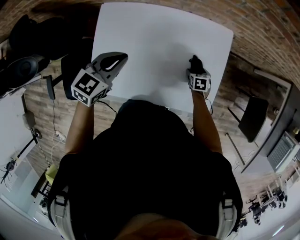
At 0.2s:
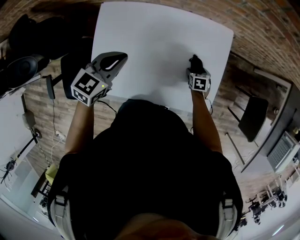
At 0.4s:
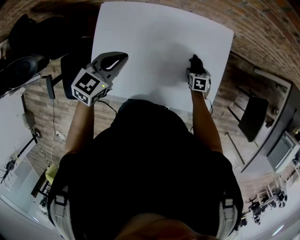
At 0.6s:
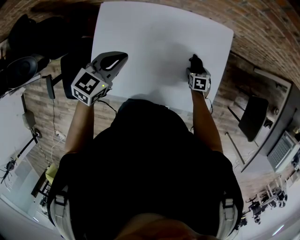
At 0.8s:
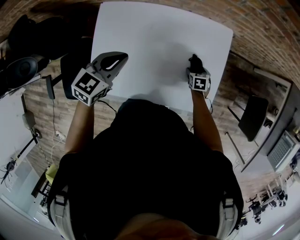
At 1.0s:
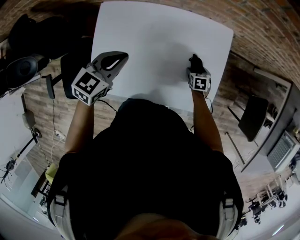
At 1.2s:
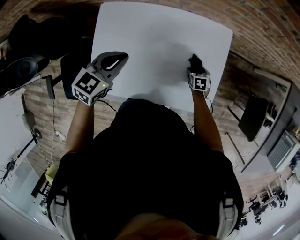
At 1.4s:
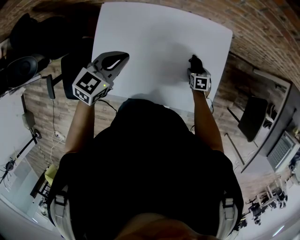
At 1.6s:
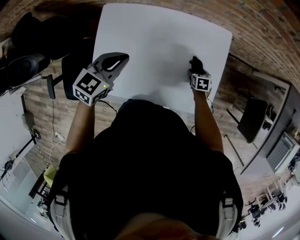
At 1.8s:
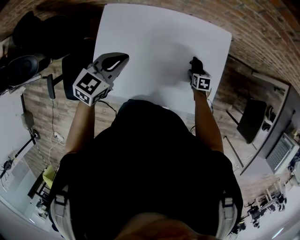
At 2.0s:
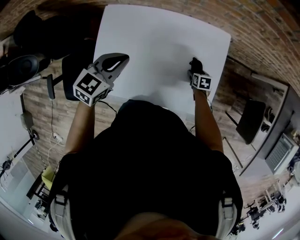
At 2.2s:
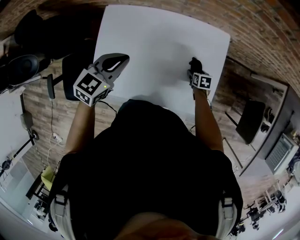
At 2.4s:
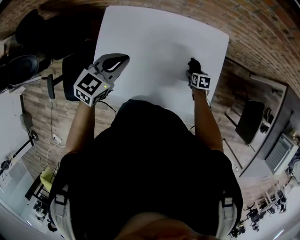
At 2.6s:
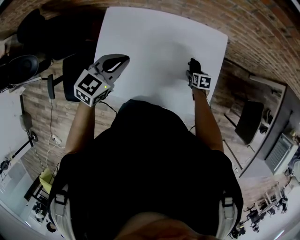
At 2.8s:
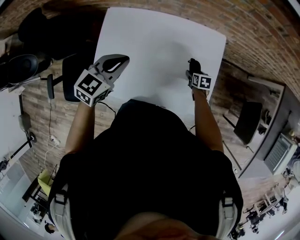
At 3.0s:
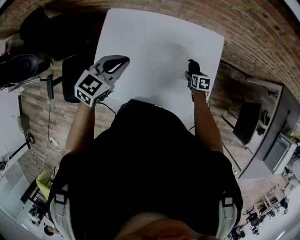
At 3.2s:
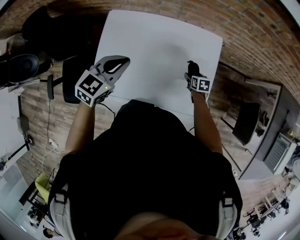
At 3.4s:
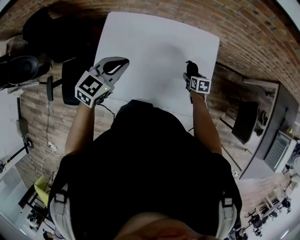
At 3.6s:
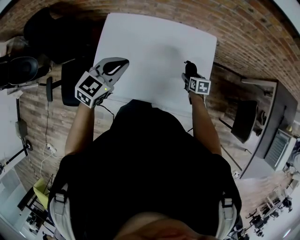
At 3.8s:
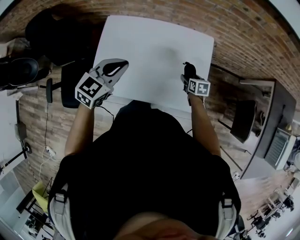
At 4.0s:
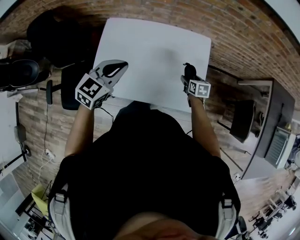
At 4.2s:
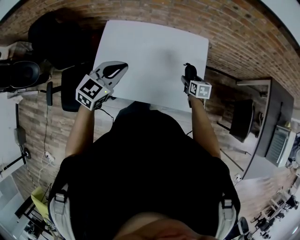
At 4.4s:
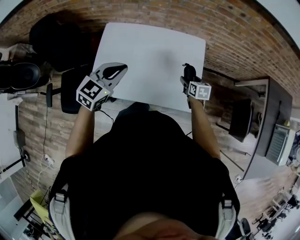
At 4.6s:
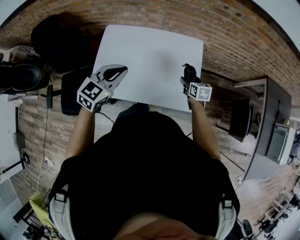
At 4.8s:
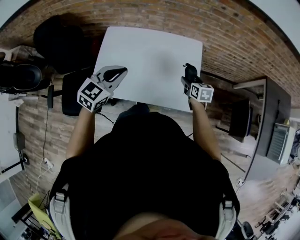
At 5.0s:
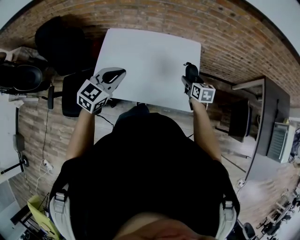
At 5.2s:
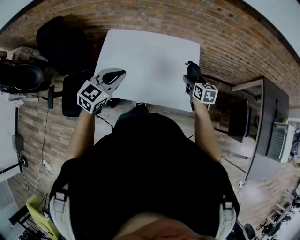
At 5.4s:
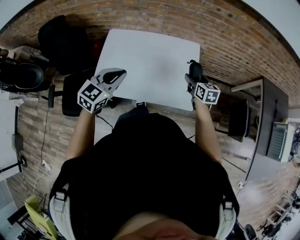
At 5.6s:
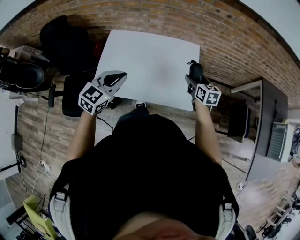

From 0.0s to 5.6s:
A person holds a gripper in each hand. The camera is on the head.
From 0.0s to 1.4s: The two grippers keep their place.
From 1.4s to 2.8s: The left gripper moves roughly 5 cm.
From 2.8s to 4.2s: The right gripper shifts about 15 cm upward and backward. The left gripper goes approximately 10 cm backward and upward.
From 4.2s to 5.6s: The right gripper shifts approximately 15 cm upward and backward; the left gripper is displaced backward by roughly 10 cm.

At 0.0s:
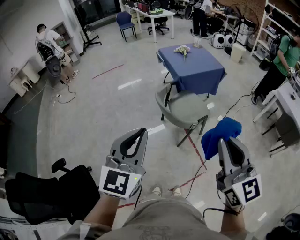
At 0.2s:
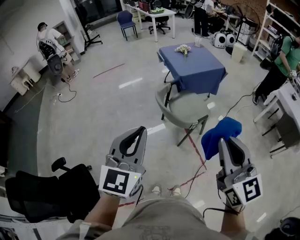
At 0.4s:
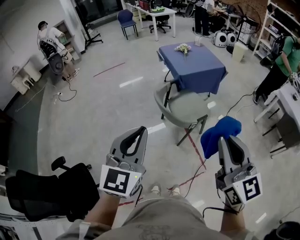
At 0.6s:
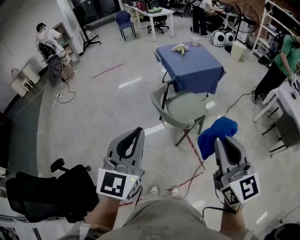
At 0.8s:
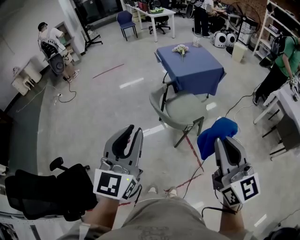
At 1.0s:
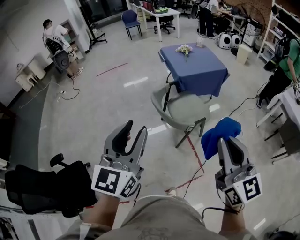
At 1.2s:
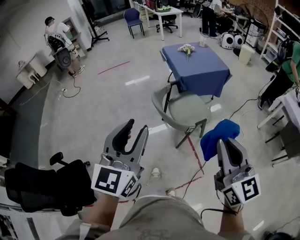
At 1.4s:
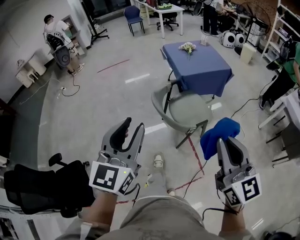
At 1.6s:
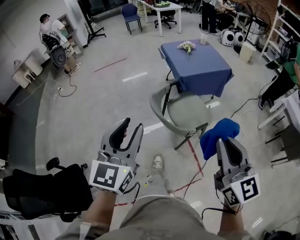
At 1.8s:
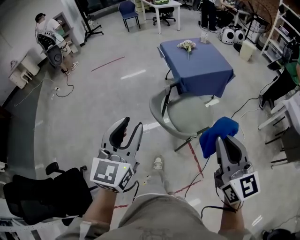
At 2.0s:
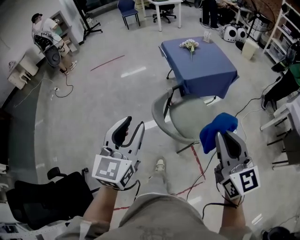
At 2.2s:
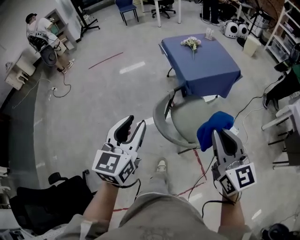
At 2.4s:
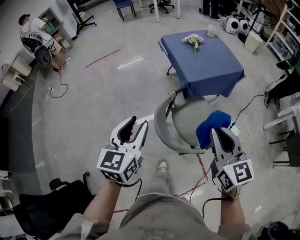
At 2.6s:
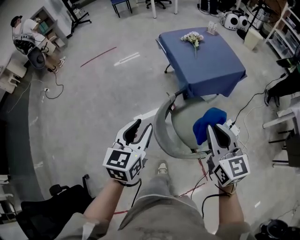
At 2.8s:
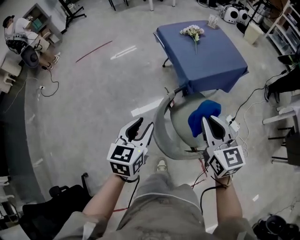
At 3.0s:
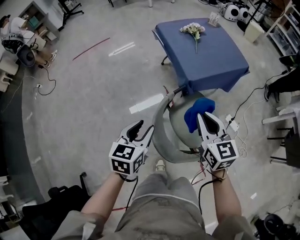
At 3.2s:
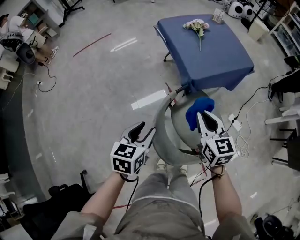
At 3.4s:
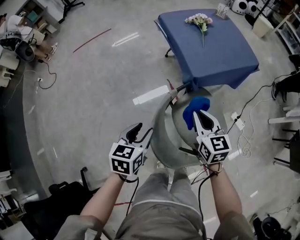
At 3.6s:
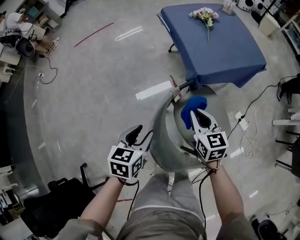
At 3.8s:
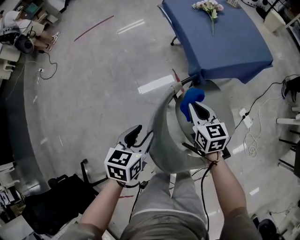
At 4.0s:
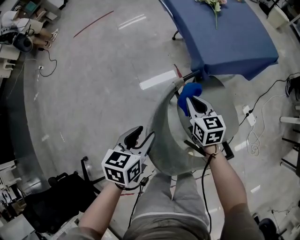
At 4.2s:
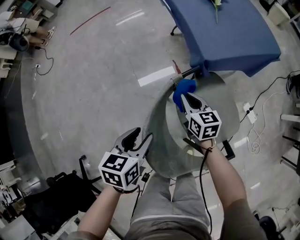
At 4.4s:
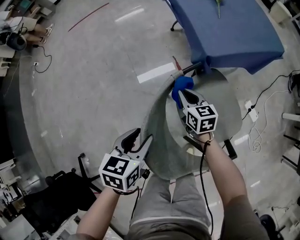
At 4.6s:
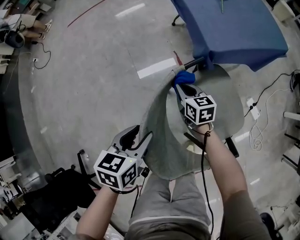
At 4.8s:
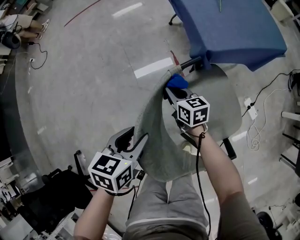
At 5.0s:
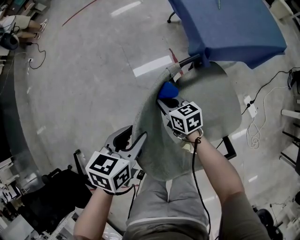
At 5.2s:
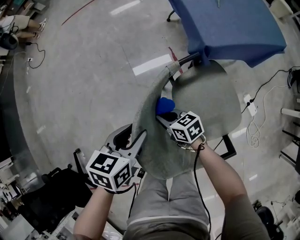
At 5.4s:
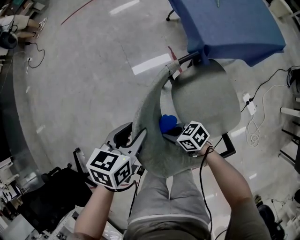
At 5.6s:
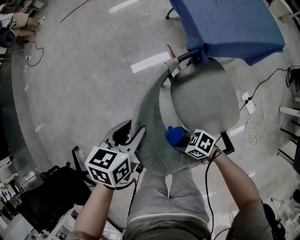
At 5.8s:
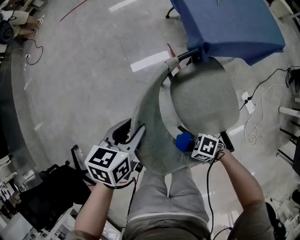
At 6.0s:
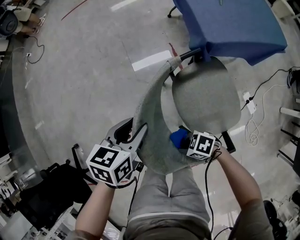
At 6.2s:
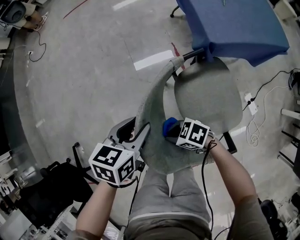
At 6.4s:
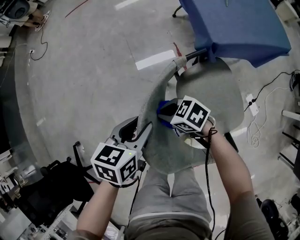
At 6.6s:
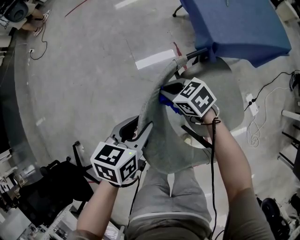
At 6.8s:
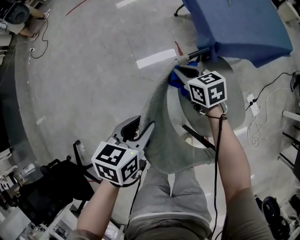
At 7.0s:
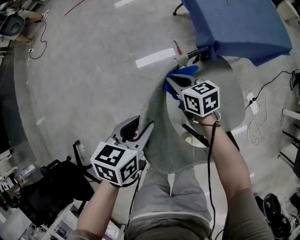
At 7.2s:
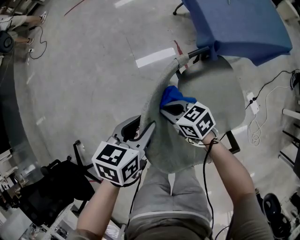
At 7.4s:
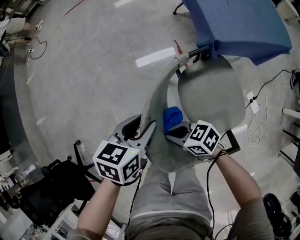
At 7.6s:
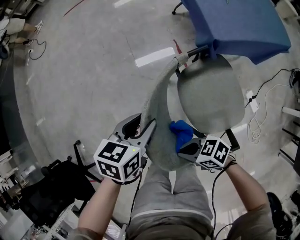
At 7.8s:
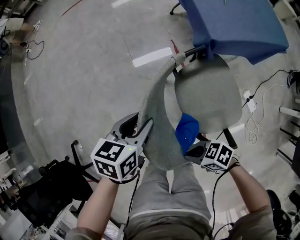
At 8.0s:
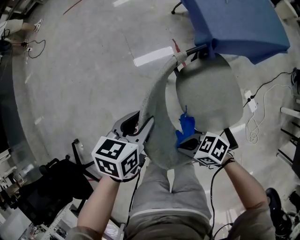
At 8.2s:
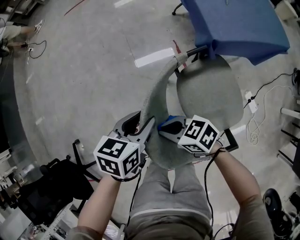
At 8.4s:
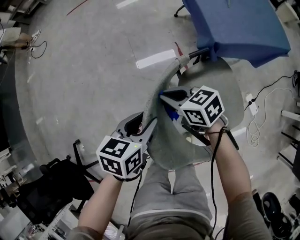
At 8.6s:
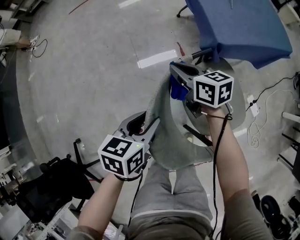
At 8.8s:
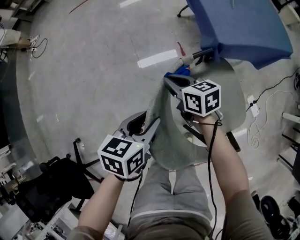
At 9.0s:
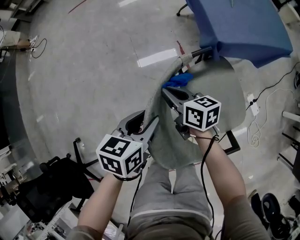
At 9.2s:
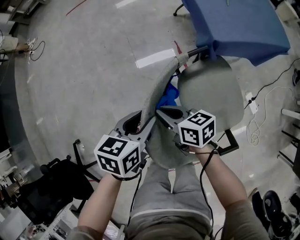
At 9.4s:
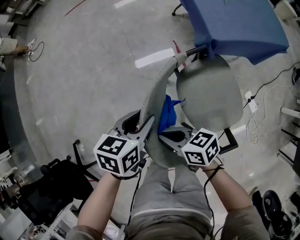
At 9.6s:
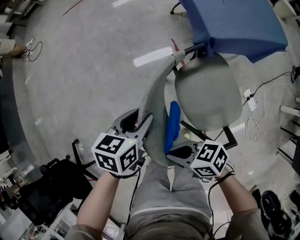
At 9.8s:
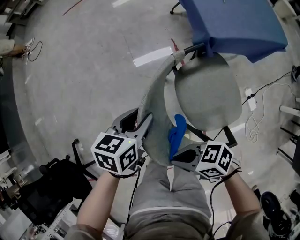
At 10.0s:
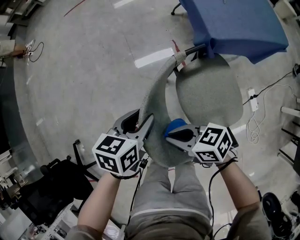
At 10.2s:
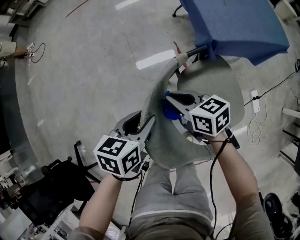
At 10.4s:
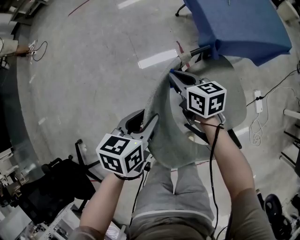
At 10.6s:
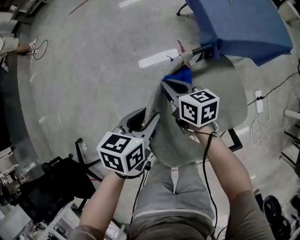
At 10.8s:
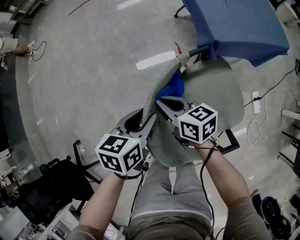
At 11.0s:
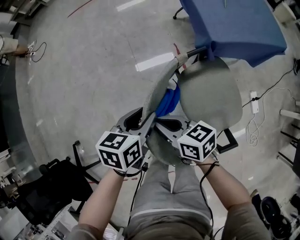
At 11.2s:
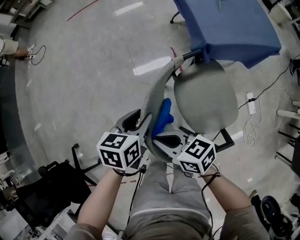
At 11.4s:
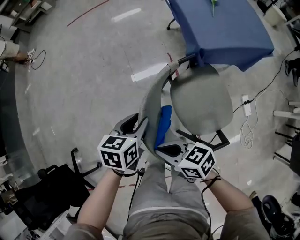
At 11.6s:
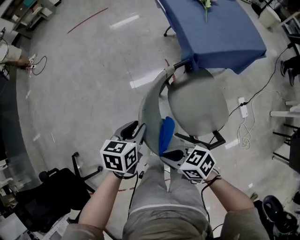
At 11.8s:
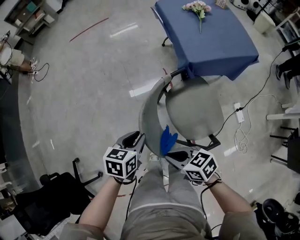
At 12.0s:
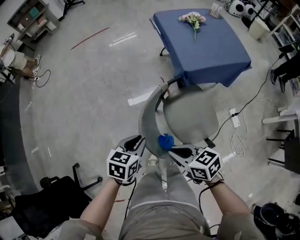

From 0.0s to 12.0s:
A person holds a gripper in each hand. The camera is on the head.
From 0.0s to 1.6s: The left gripper goes approximately 10 cm forward, and opens up, while the right gripper goes approximately 15 cm forward, to the right and downward.
From 1.6s to 3.0s: Both grippers travel together forward and downward, about 50 cm. The left gripper points its fingers roughly 30 degrees further downward. Meanwhile the right gripper changes its angle by about 20 degrees.
From 3.0s to 4.4s: The left gripper travels downward by some 15 cm. Meanwhile the right gripper heads downward, covering some 35 cm, and swivels roughly 20 degrees.
From 4.4s to 6.0s: The right gripper moves about 30 cm, and turns by approximately 80 degrees.
From 6.0s to 7.6s: The right gripper is displaced upward by roughly 10 cm.
From 7.6s to 9.0s: The right gripper changes place by roughly 25 cm, and rotates some 50 degrees.
From 10.4s to 12.0s: The right gripper shifts about 30 cm backward and upward. The left gripper travels upward and backward by some 10 cm.

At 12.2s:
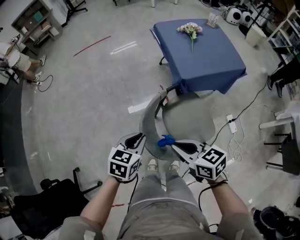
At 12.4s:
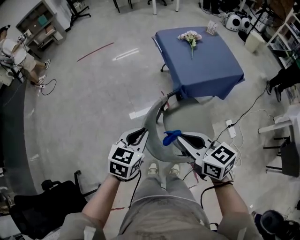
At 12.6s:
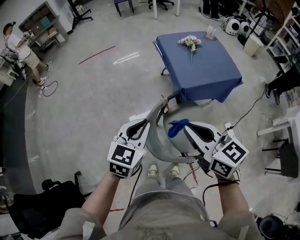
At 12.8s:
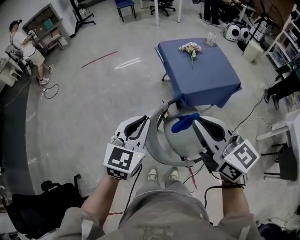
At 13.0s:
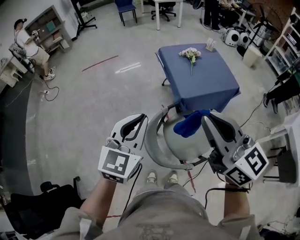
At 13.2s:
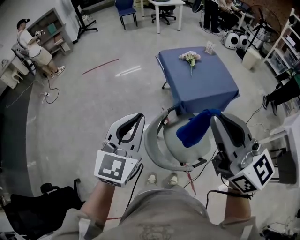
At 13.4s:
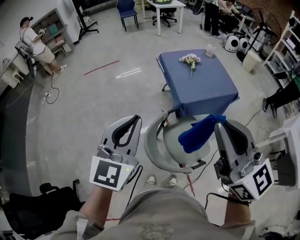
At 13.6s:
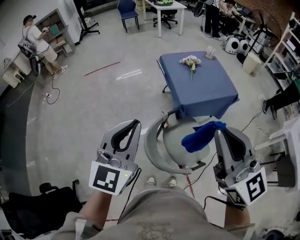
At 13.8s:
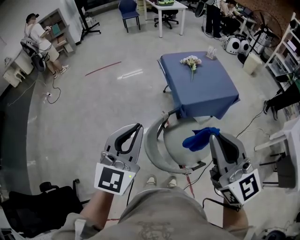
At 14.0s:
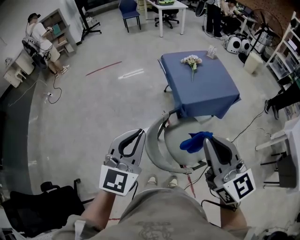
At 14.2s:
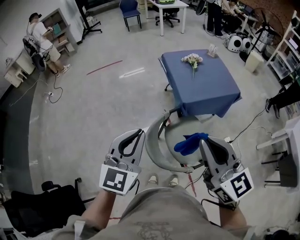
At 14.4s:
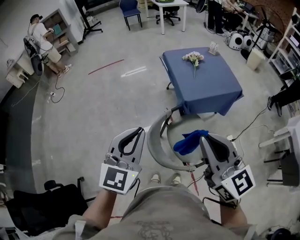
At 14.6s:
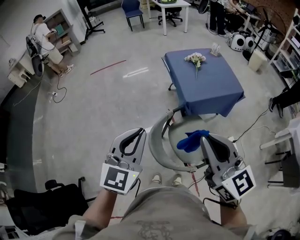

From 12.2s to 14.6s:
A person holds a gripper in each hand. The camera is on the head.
From 12.2s to 13.4s: The grippers both shift upward by roughly 35 cm. The left gripper tilts its fingers about 40 degrees upward. Meanwhile the right gripper points its fingers approximately 30 degrees further upward.
From 13.4s to 14.6s: The right gripper goes about 10 cm downward. The left gripper changes place by some 5 cm.

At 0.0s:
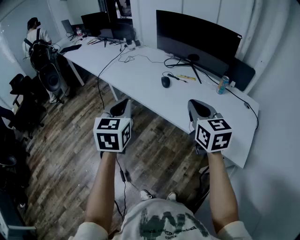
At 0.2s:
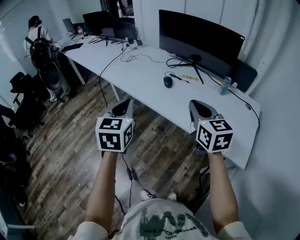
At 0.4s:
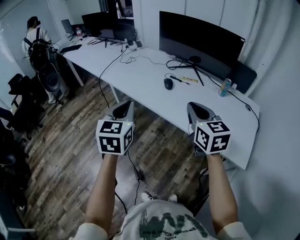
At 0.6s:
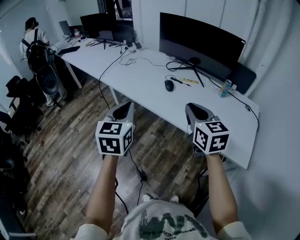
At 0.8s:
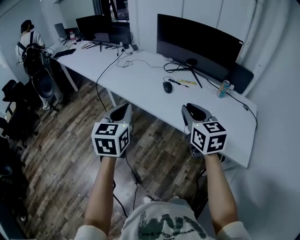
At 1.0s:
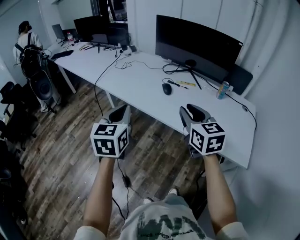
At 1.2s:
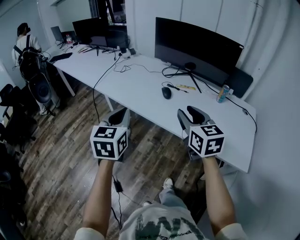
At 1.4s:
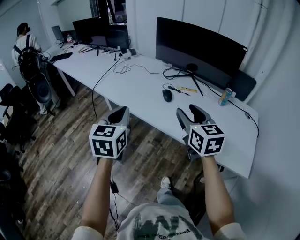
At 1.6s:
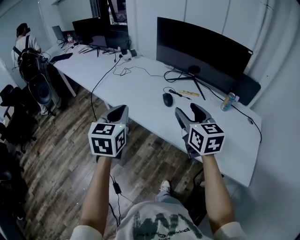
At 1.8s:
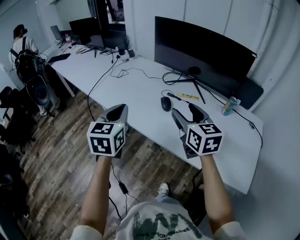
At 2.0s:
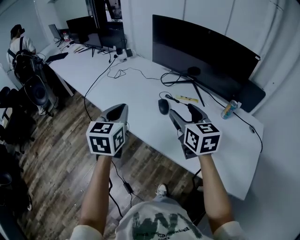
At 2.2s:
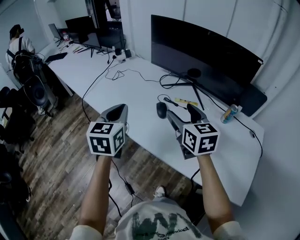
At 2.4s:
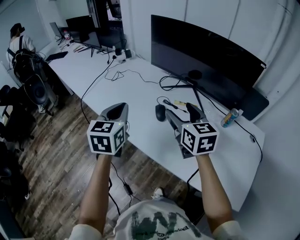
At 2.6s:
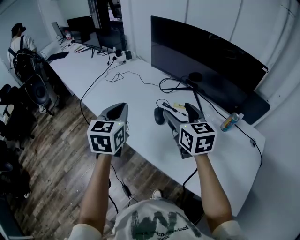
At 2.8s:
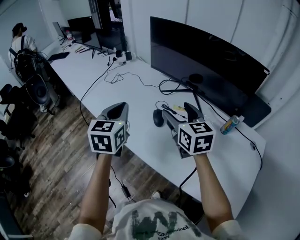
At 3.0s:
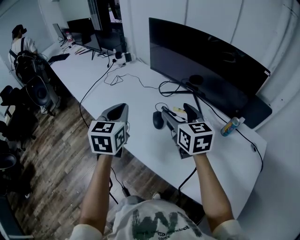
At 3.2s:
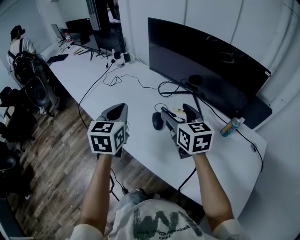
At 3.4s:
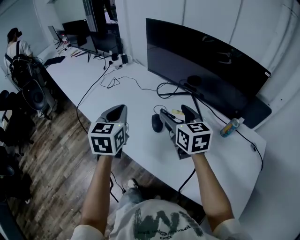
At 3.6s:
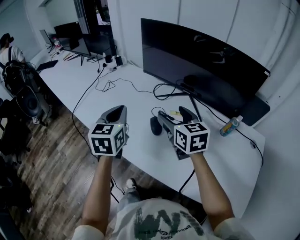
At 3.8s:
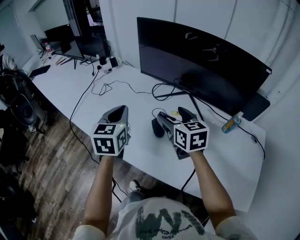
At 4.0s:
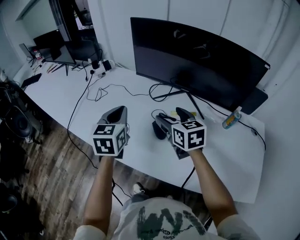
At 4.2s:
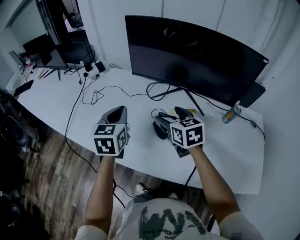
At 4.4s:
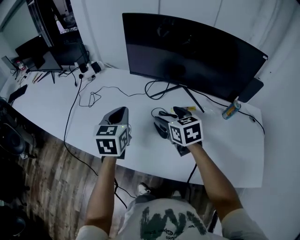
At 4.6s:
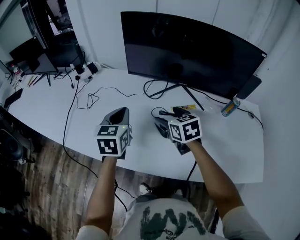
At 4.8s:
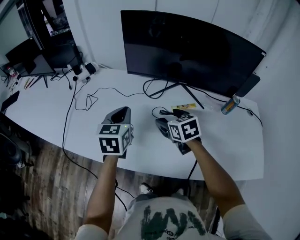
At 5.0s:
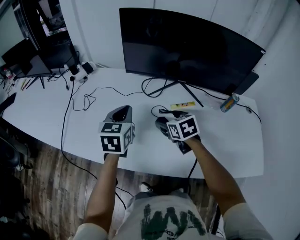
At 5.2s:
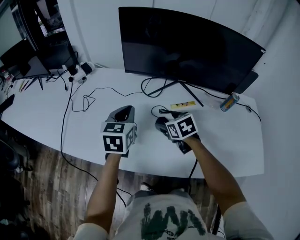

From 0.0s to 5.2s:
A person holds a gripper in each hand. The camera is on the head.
From 0.0s to 1.8s: The two grippers go roughly 20 cm forward. The right gripper opens up.
From 1.8s to 3.4s: The right gripper goes about 15 cm forward; the left gripper is displaced forward and to the right by approximately 15 cm.
From 3.4s to 5.2s: The left gripper is displaced forward and downward by approximately 20 cm, and rotates some 30 degrees; the right gripper travels downward and forward by about 20 cm, and tips its fingers downward by approximately 30 degrees.
